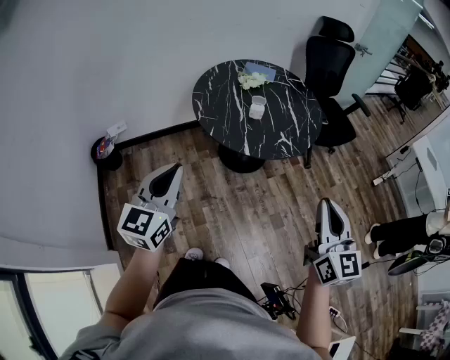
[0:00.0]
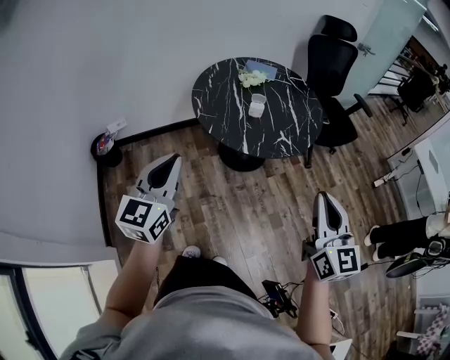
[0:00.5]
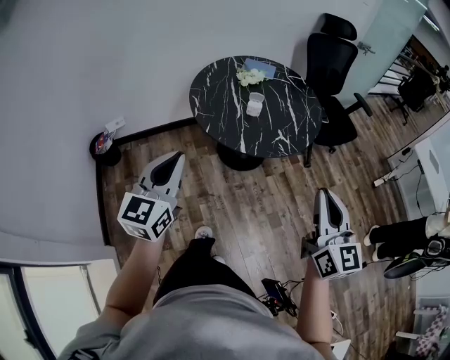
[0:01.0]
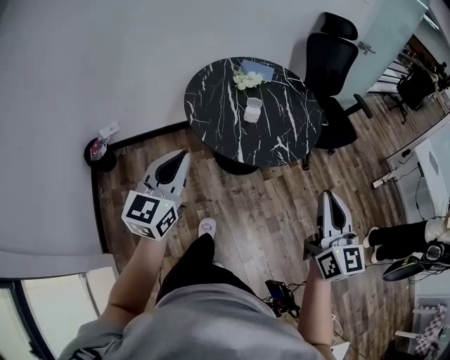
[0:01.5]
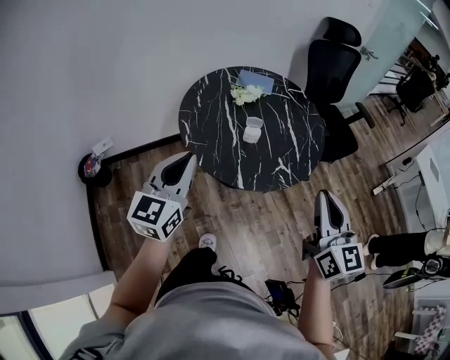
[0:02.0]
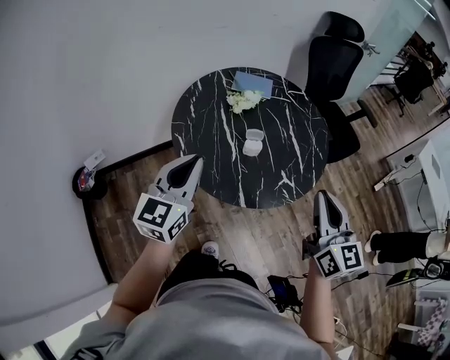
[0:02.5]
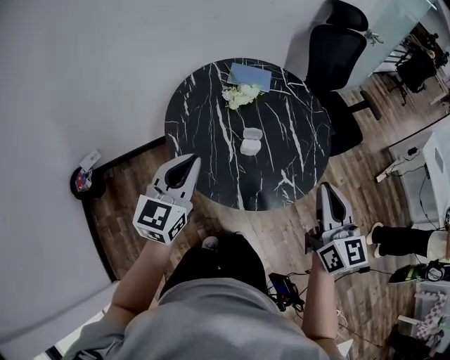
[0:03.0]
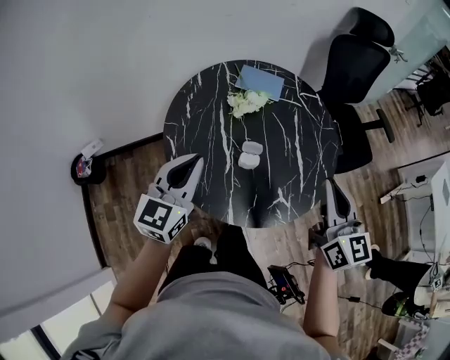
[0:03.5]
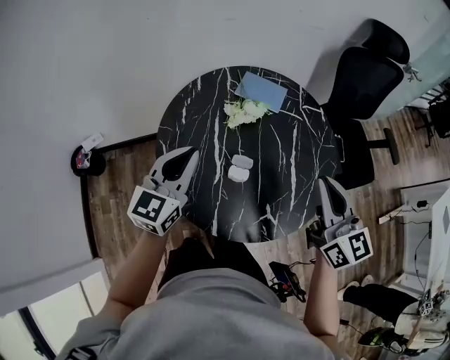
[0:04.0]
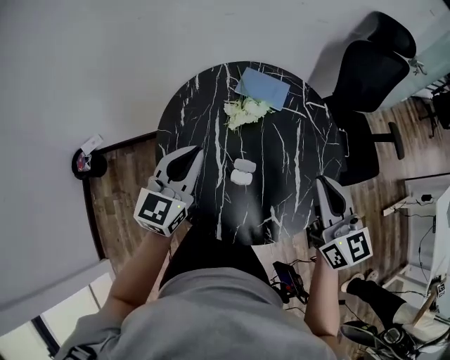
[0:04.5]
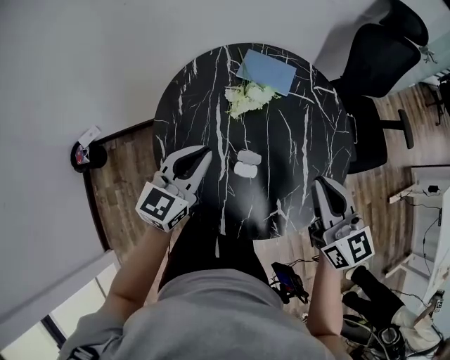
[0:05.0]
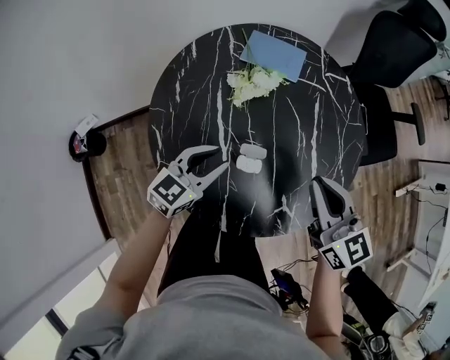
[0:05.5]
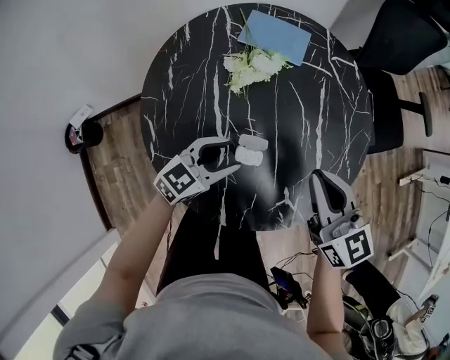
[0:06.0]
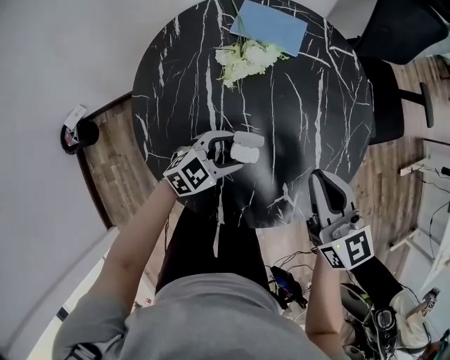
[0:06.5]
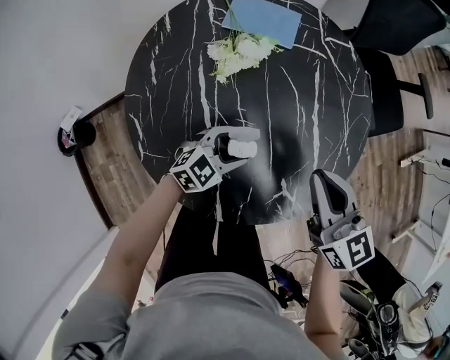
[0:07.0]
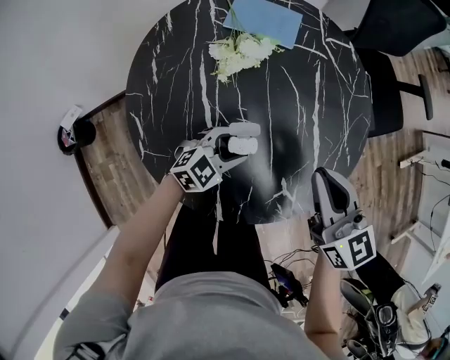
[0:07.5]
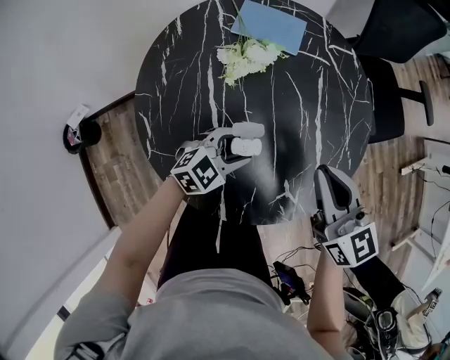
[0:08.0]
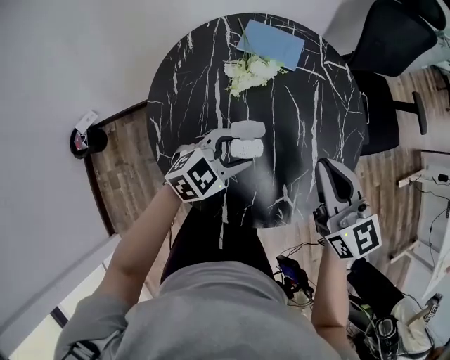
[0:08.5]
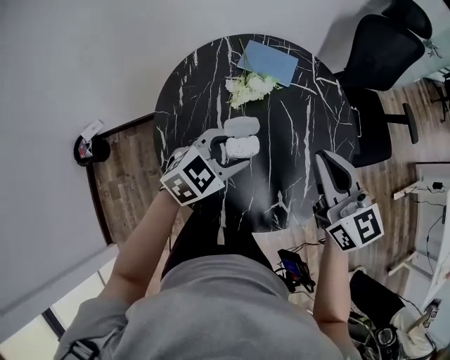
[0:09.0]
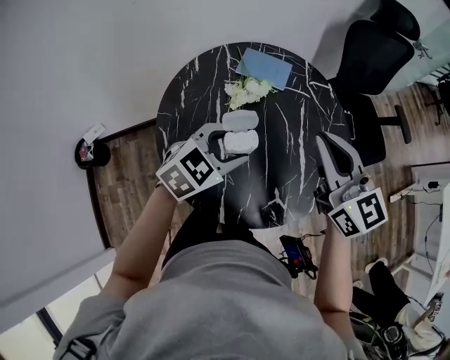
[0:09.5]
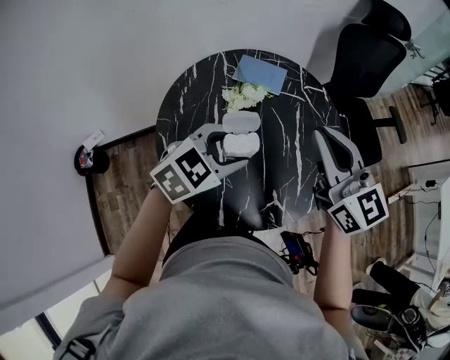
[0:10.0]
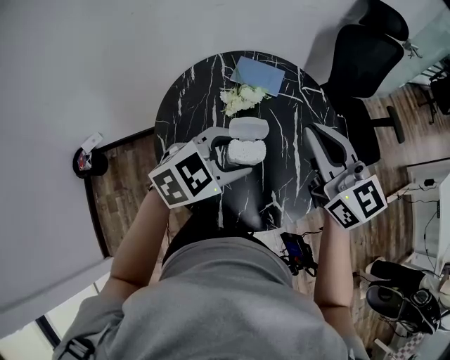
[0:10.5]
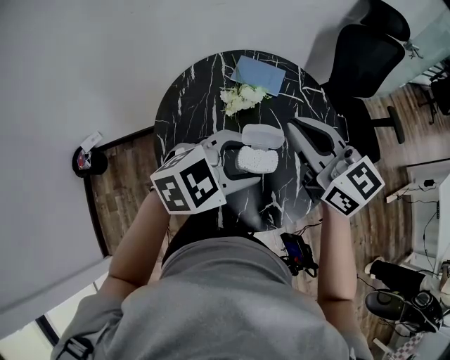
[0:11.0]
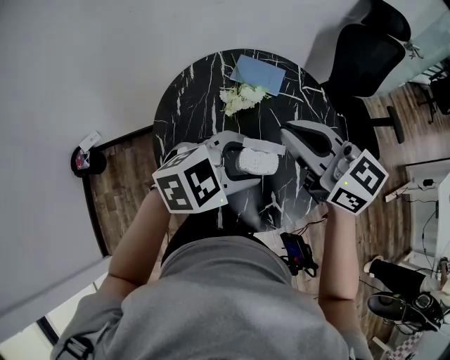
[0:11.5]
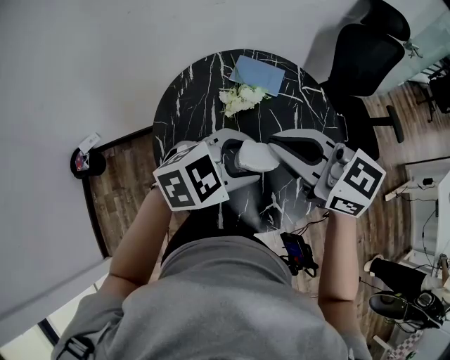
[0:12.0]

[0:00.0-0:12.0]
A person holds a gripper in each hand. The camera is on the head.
0:00.0 to 0:02.0: Both grippers travel together forward, some 20 cm.
0:02.0 to 0:04.0: Both grippers travel together forward, about 30 cm.
0:04.0 to 0:06.0: The right gripper heads downward, covering roughly 15 cm. The left gripper heads downward, covering roughly 20 cm, swivels some 40 degrees, and opens.
0:06.0 to 0:08.0: The left gripper swivels about 20 degrees.
0:08.0 to 0:10.0: Both grippers move upward, about 20 cm.
0:10.0 to 0:12.0: The right gripper shifts by roughly 10 cm, and changes its angle by roughly 30 degrees.

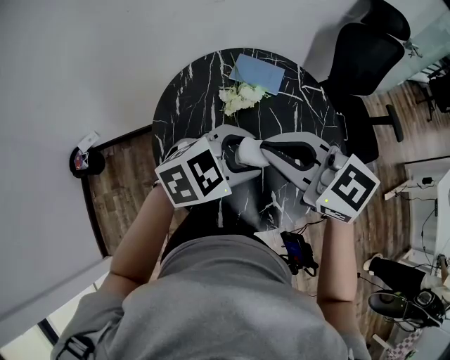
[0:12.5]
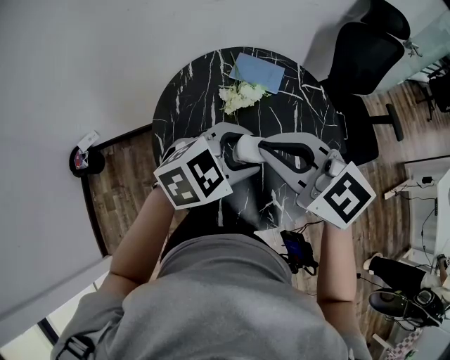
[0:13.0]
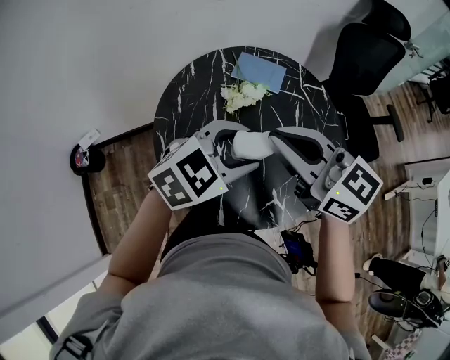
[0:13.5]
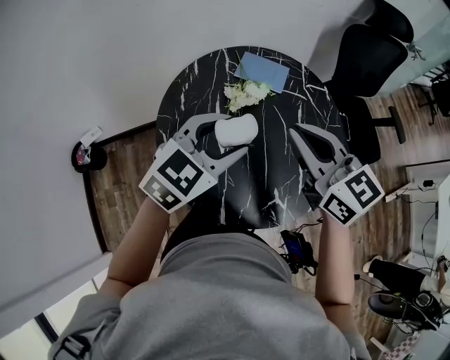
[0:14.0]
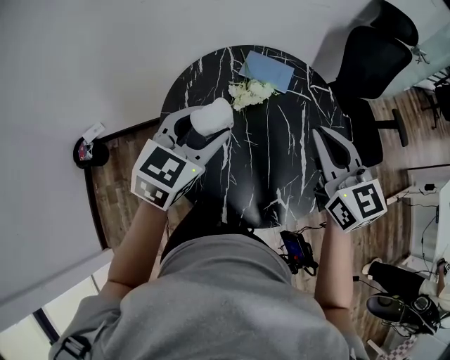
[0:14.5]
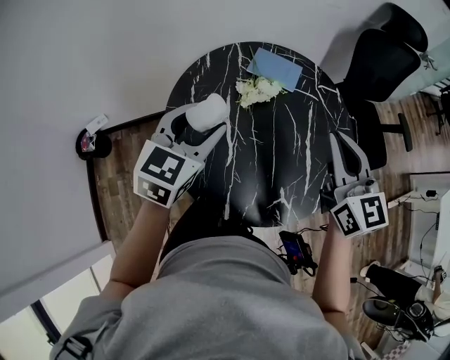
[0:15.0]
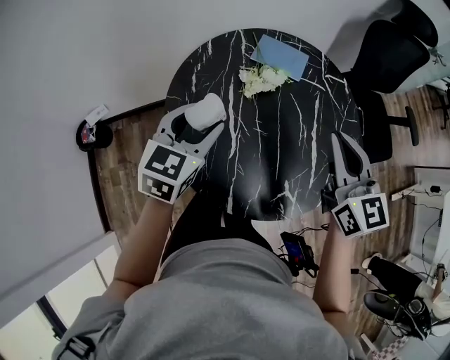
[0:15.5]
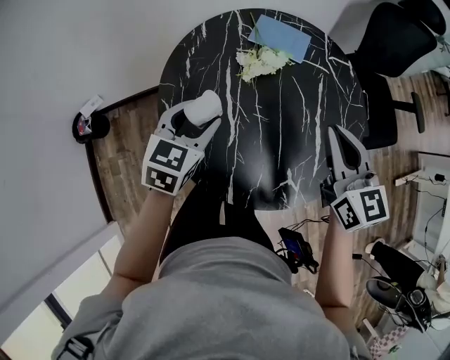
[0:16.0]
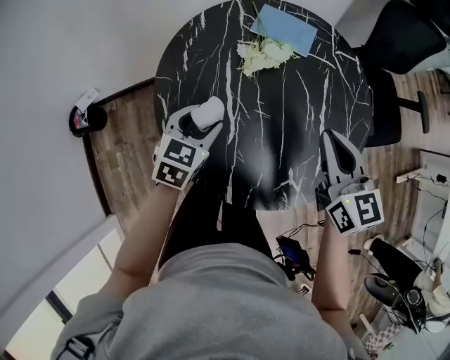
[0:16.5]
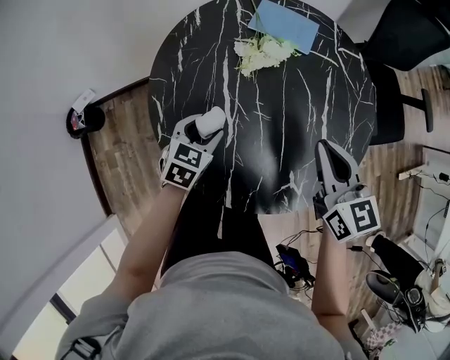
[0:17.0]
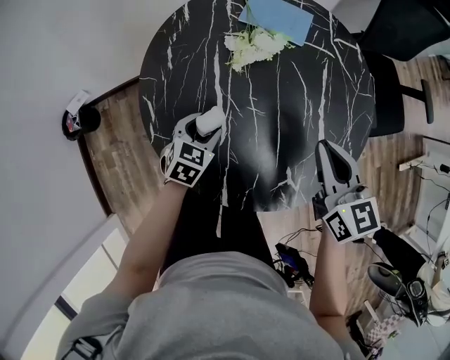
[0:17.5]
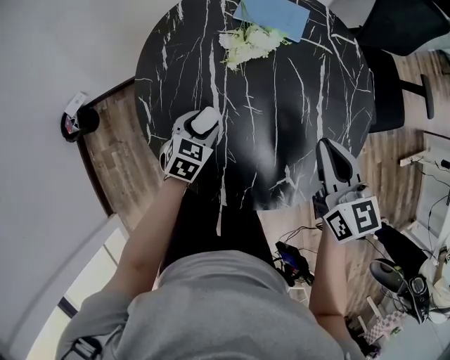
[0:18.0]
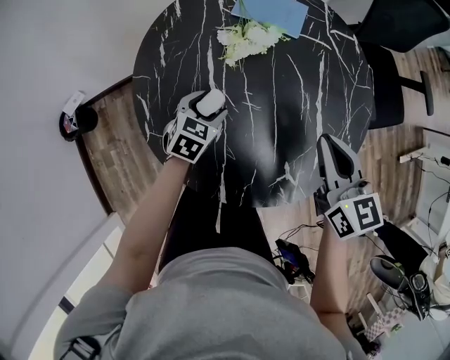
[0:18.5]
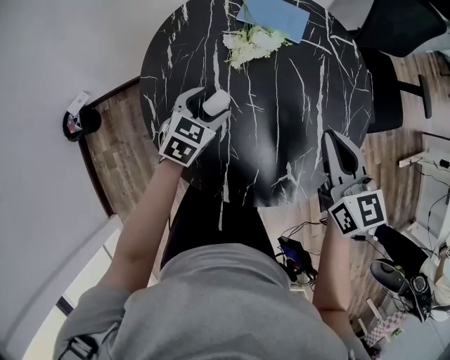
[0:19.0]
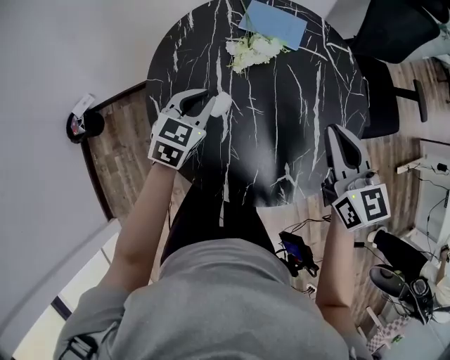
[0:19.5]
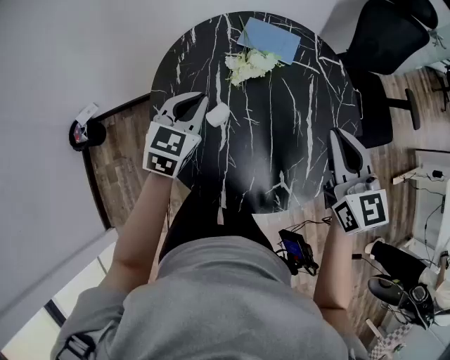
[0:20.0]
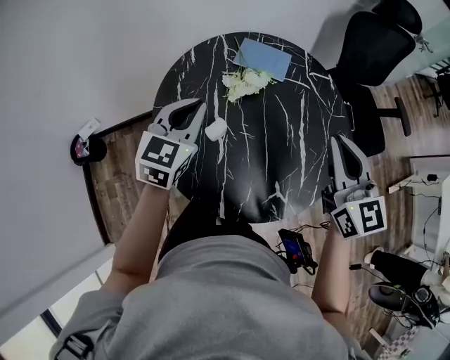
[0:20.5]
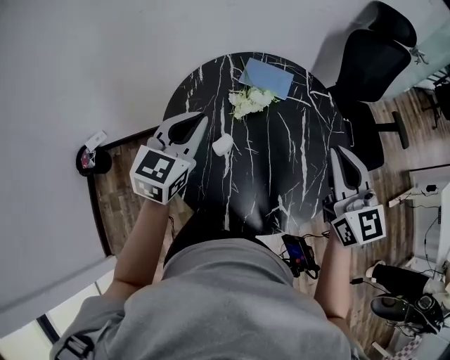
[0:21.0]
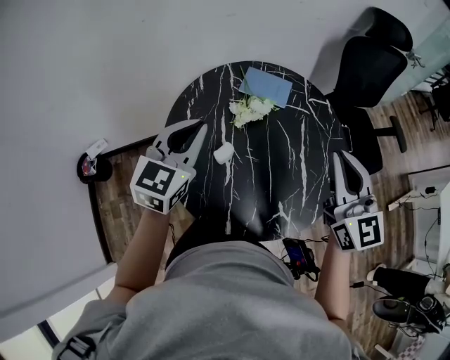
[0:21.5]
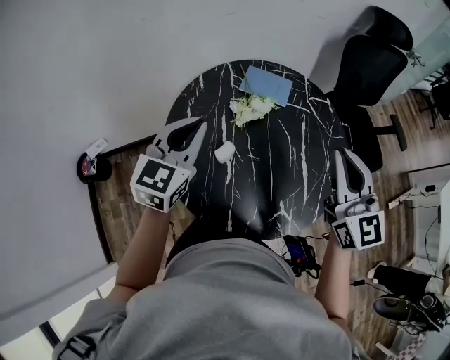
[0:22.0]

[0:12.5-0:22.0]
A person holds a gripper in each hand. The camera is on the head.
0:12.5 to 0:14.5: The right gripper moves some 10 cm, and changes its angle by roughly 30 degrees, while the left gripper changes place by about 10 cm, and turns by some 40 degrees.
0:14.5 to 0:16.5: The left gripper travels downward by approximately 20 cm. Meanwhile the right gripper heads downward, covering some 10 cm.
0:16.5 to 0:18.0: The left gripper moves downward, roughly 10 cm; the right gripper ends up roughly 5 cm from where it was.
0:18.0 to 0:20.0: The right gripper is displaced upward by roughly 10 cm; the left gripper goes approximately 20 cm upward, turns by approximately 20 degrees, and closes up.
0:20.0 to 0:22.0: Both grippers travel together upward, about 10 cm.

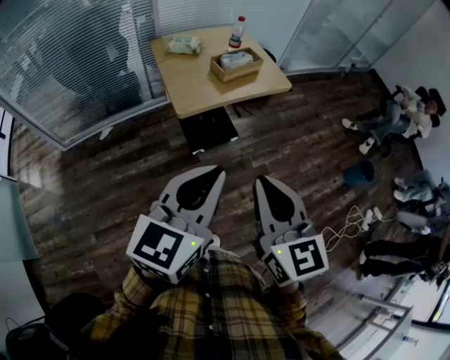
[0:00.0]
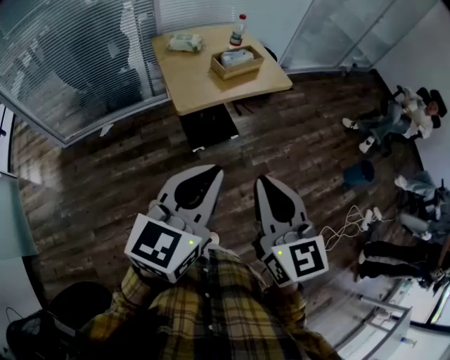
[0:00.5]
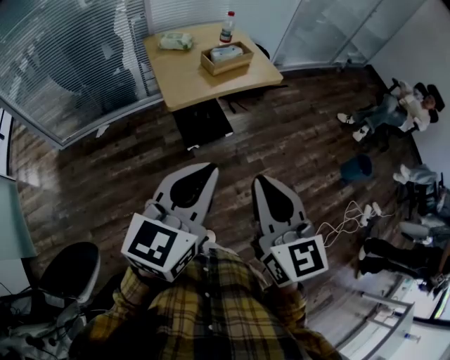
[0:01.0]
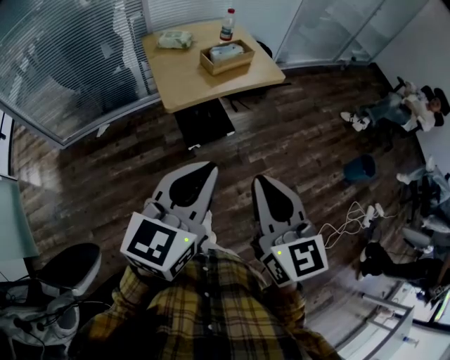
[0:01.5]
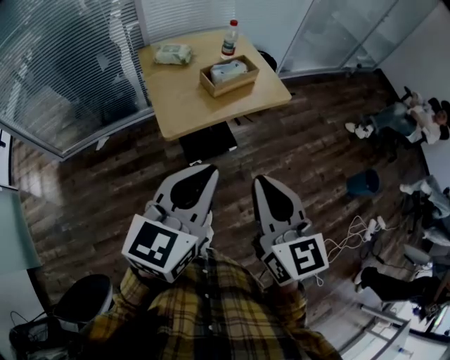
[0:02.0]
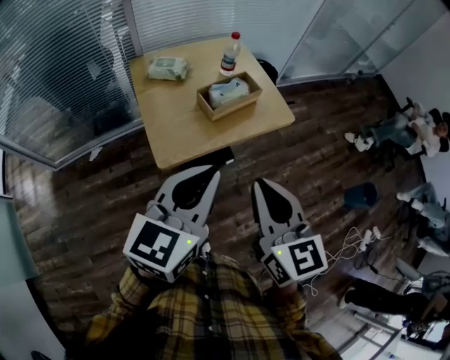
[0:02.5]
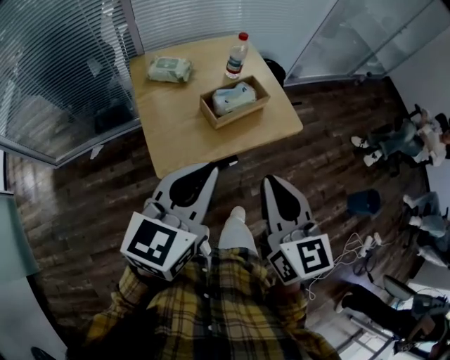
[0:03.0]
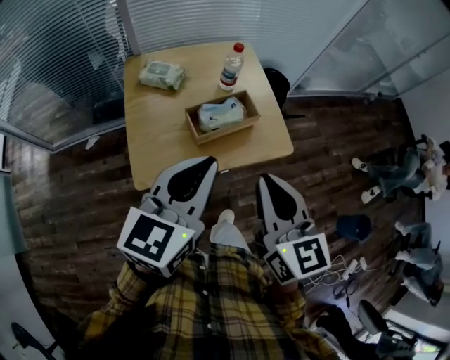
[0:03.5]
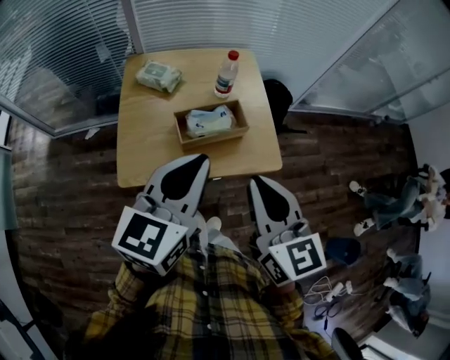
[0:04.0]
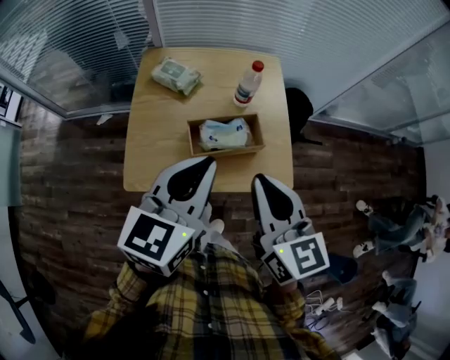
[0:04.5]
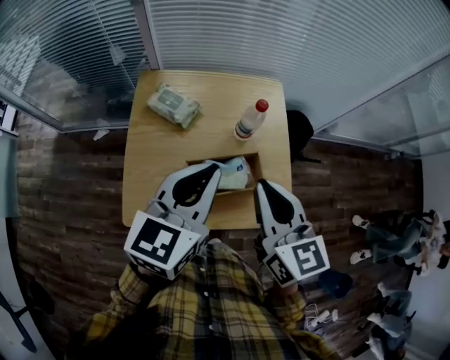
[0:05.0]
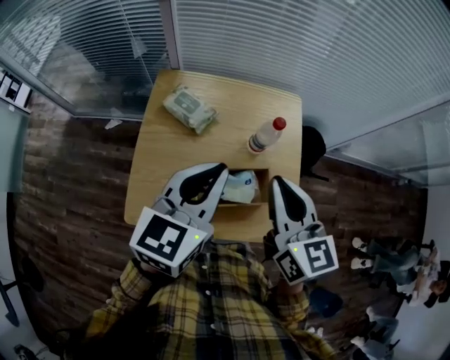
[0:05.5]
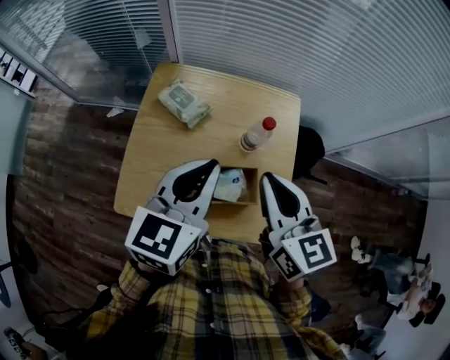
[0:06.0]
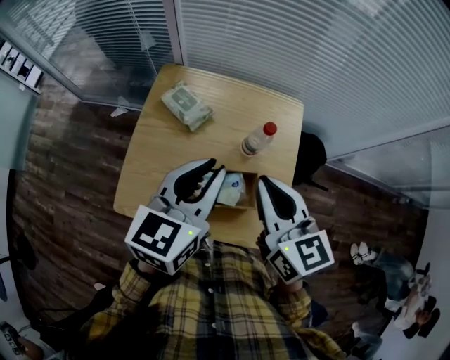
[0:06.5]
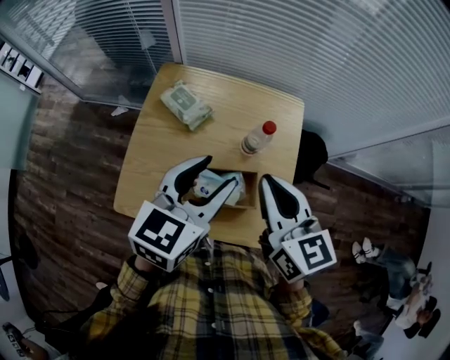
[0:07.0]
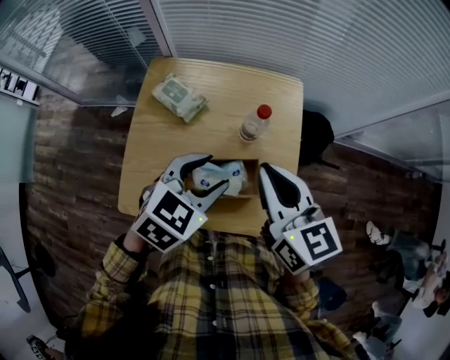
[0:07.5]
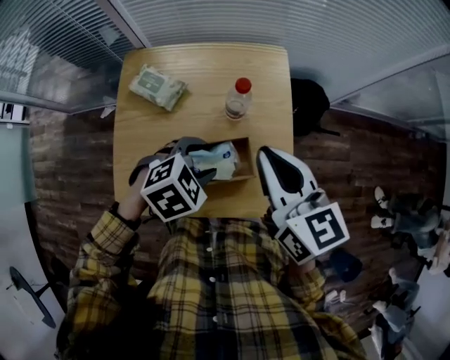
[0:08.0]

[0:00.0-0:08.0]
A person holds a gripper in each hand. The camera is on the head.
0:00.0 to 0:02.0: Both grippers move forward, some 10 cm.
0:02.0 to 0:04.0: The grippers both shift forward by roughly 30 cm.
0:04.0 to 0:06.0: The two grippers go roughly 20 cm forward.
0:06.0 to 0:08.0: The left gripper shifts some 20 cm downward, tips its fingers downward by approximately 40 degrees, and opens.
